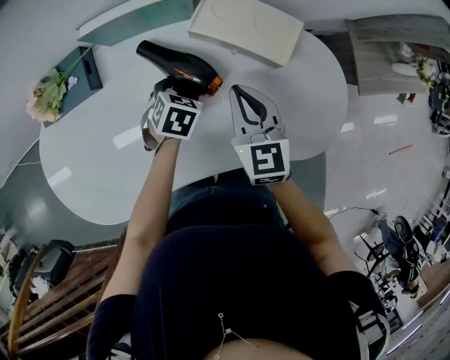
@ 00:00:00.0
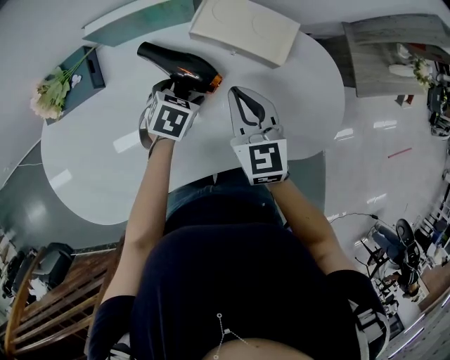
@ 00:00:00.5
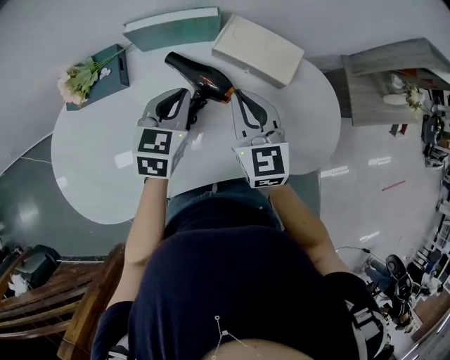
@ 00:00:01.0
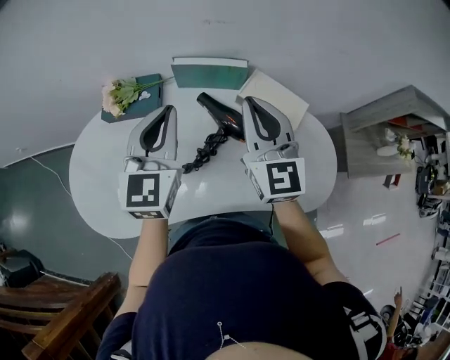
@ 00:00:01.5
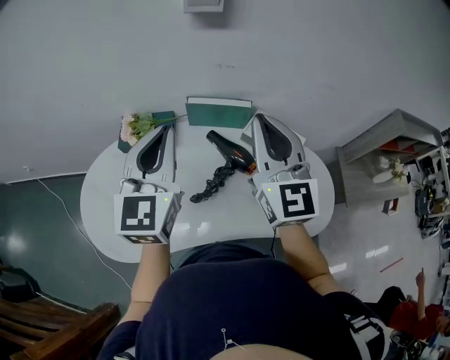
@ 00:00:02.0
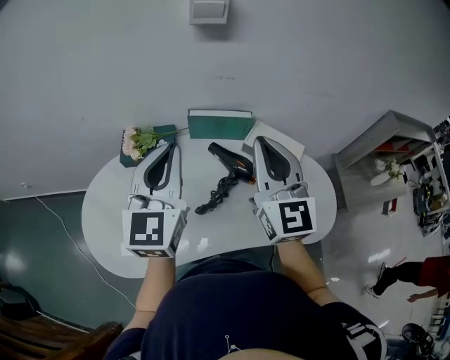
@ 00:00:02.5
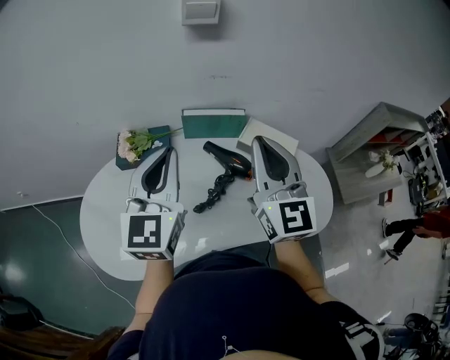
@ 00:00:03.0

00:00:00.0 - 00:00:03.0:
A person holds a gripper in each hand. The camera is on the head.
00:00:00.0 - 00:00:01.5: The right gripper heads upward, covering about 25 cm, and rotates roughly 30 degrees, while the left gripper heads upward, covering roughly 35 cm, angles its fingers upward, by roughly 60 degrees, and closes up.
00:00:01.5 - 00:00:03.0: The right gripper moves upward and backward, about 10 cm, while the left gripper shifts about 10 cm upward, to the left and backward.

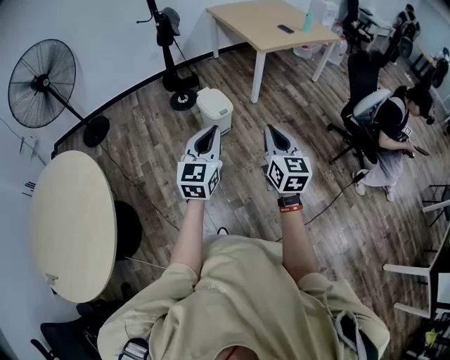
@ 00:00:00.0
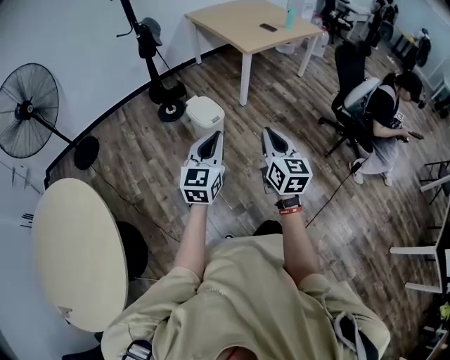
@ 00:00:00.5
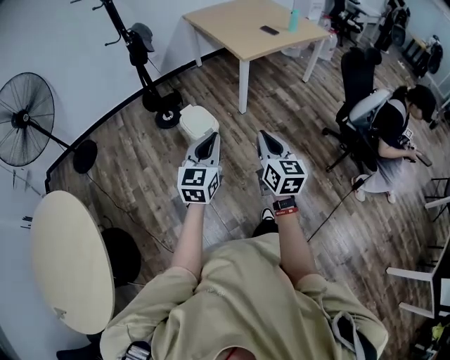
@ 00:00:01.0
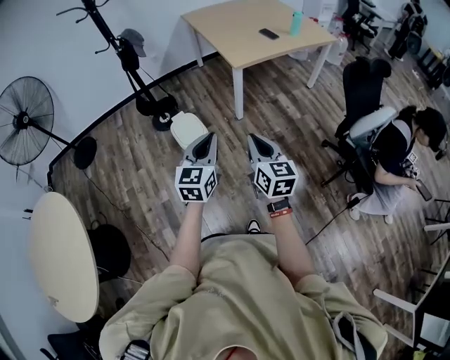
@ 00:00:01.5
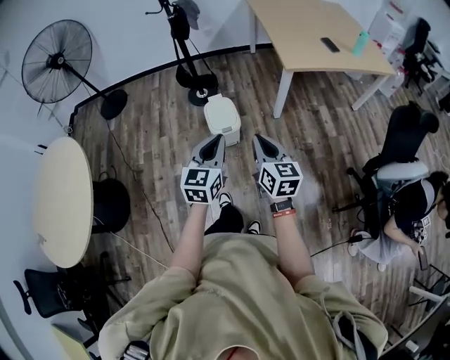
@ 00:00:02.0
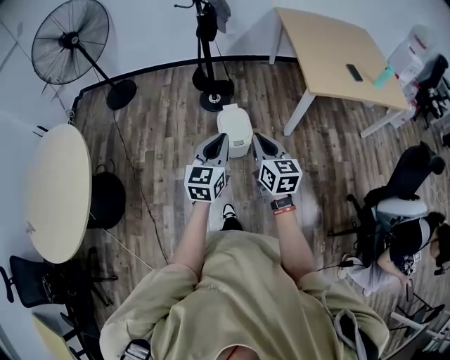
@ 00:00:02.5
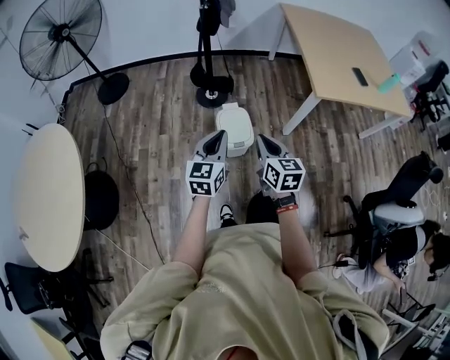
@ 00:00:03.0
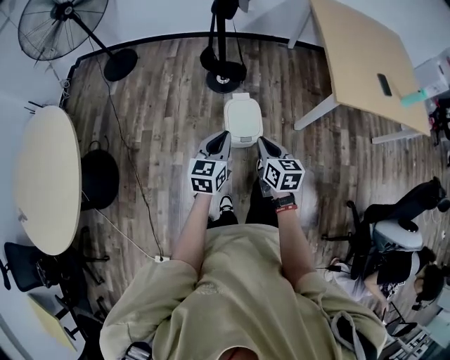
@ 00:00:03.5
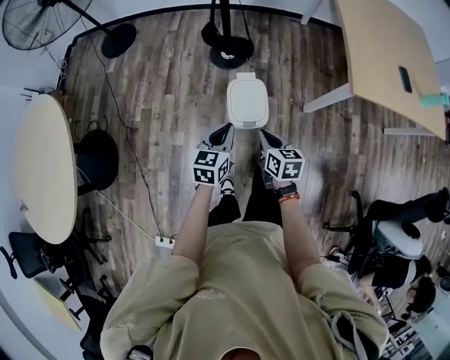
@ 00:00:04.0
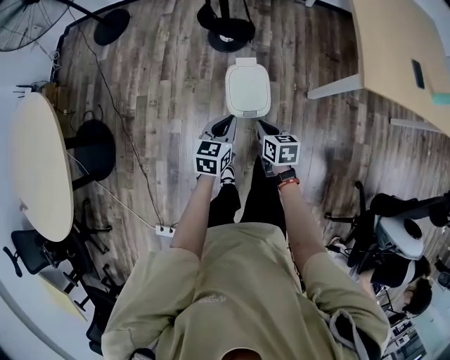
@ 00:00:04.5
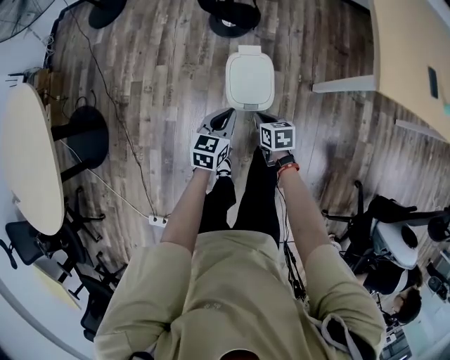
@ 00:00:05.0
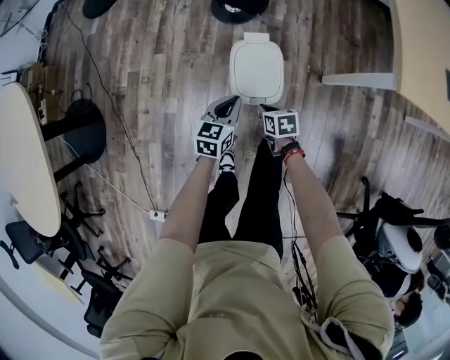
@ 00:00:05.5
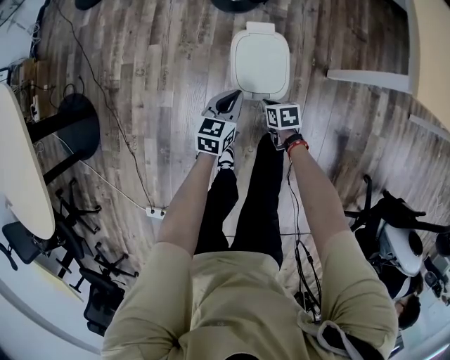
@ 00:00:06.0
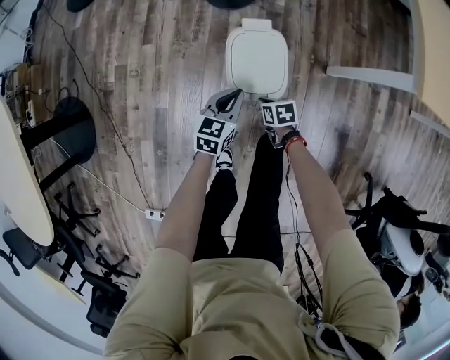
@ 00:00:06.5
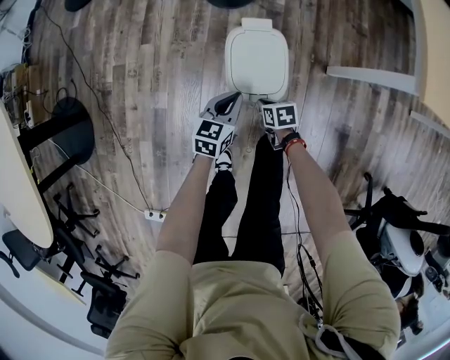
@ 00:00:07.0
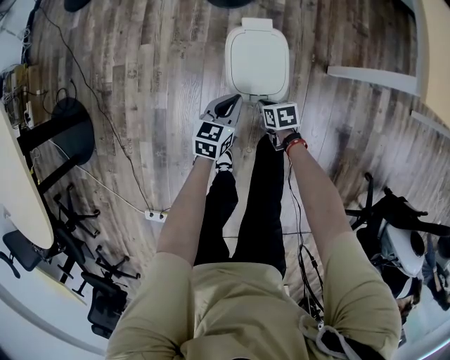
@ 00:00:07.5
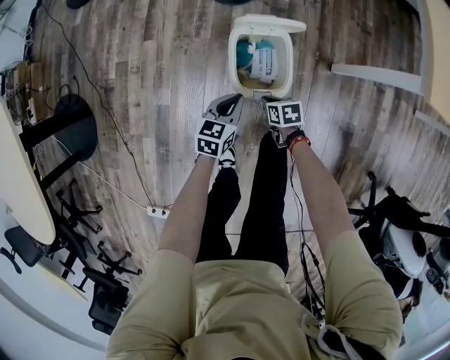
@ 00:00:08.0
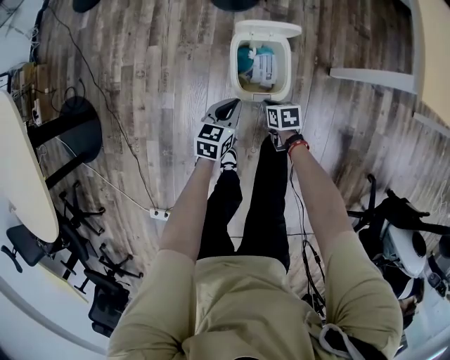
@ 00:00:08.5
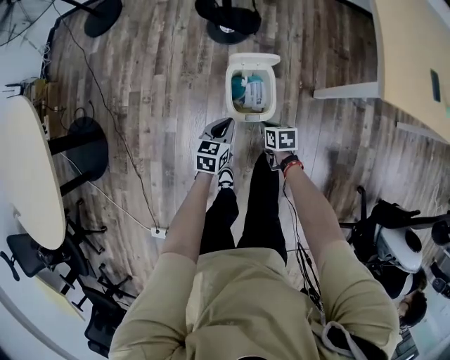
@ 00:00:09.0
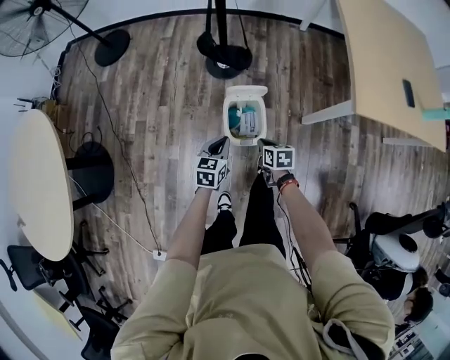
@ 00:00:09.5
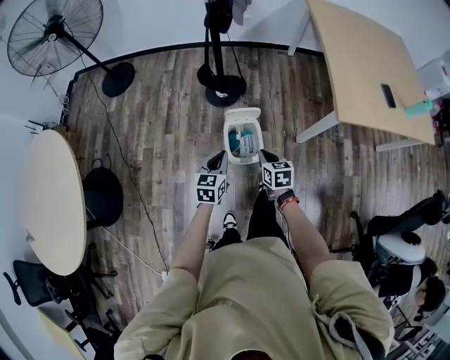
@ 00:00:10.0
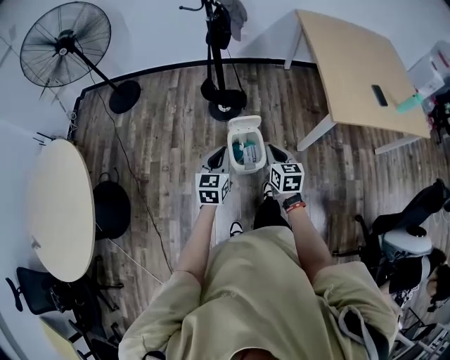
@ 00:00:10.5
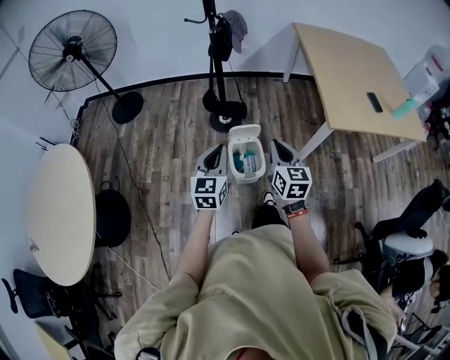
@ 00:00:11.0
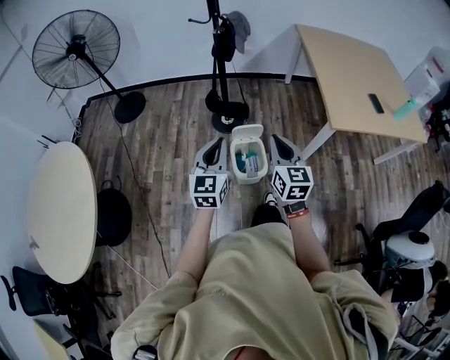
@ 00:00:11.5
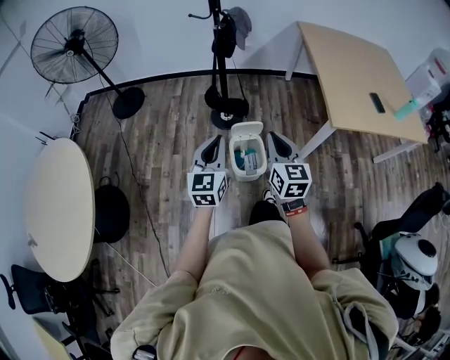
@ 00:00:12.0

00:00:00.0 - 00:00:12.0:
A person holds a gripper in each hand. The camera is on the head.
00:00:00.0 - 00:00:02.0: The right gripper ends up roughly 40 cm from where it was, and swivels about 30 degrees. The left gripper ends up about 40 cm from where it was, and rotates some 20 degrees.
00:00:02.0 - 00:00:04.0: The grippers both shift forward and downward by approximately 40 cm. The right gripper rotates approximately 30 degrees; the left gripper changes its angle by approximately 20 degrees.
00:00:04.0 - 00:00:06.0: The grippers both shift downward by approximately 35 cm. The right gripper turns by about 30 degrees.
00:00:06.0 - 00:00:08.0: The grippers both shift downward by about 5 cm.
00:00:08.0 - 00:00:10.0: Both grippers move upward, about 40 cm. The right gripper rotates about 30 degrees.
00:00:10.0 - 00:00:12.0: Both grippers travel together upward, approximately 25 cm. The right gripper tips its fingers upward by some 30 degrees. The left gripper swivels approximately 20 degrees.

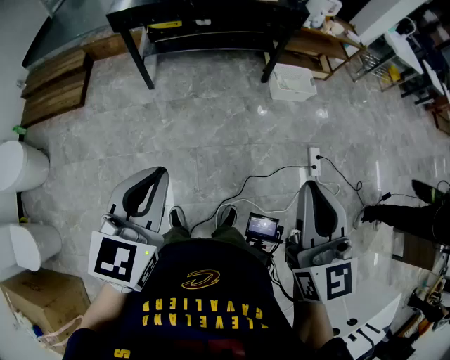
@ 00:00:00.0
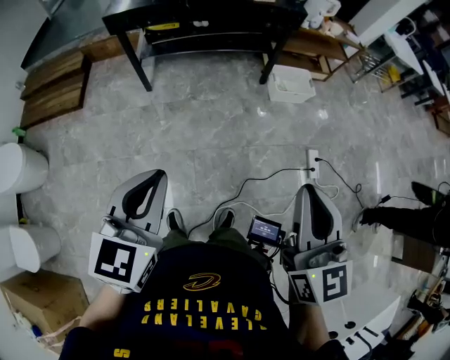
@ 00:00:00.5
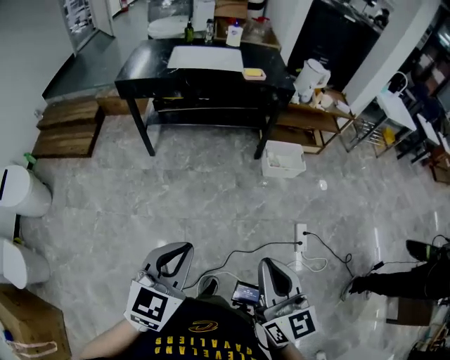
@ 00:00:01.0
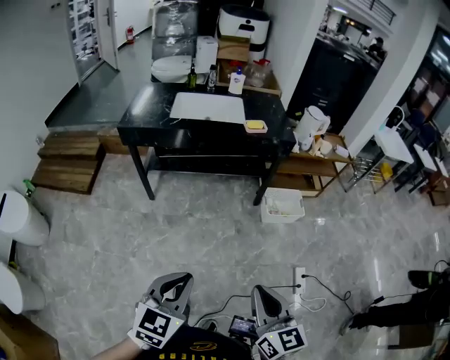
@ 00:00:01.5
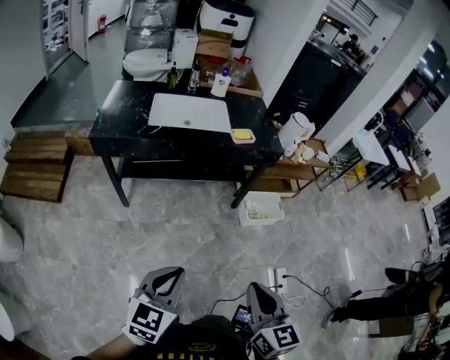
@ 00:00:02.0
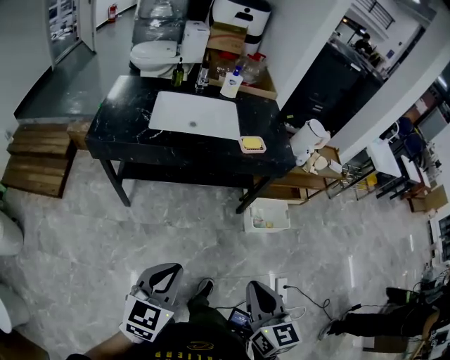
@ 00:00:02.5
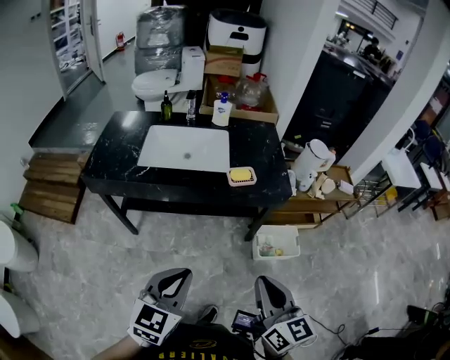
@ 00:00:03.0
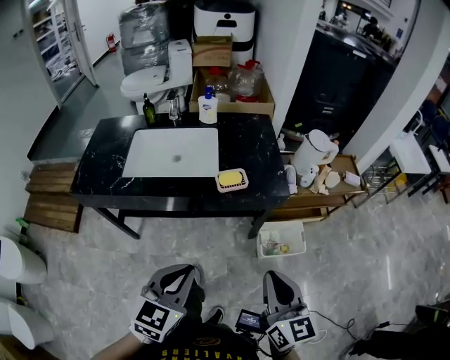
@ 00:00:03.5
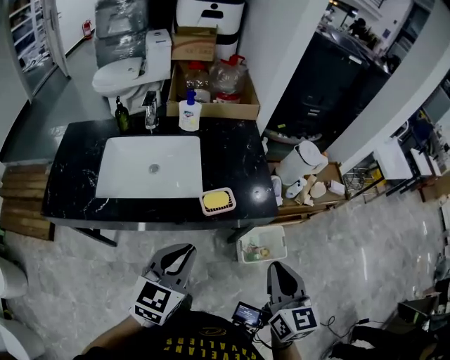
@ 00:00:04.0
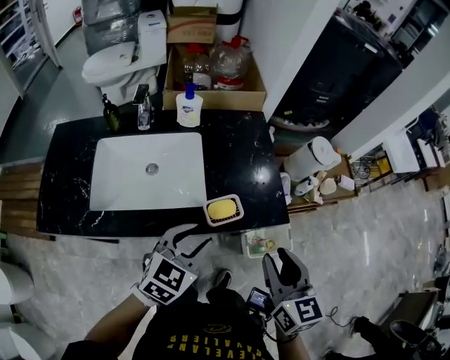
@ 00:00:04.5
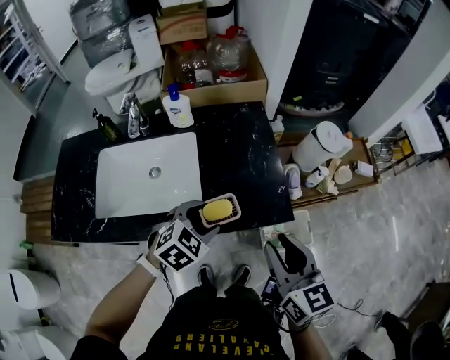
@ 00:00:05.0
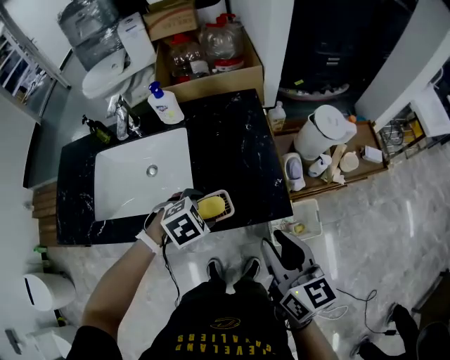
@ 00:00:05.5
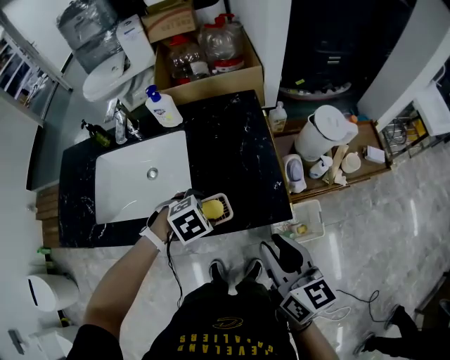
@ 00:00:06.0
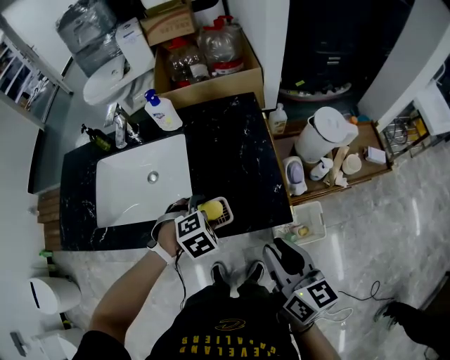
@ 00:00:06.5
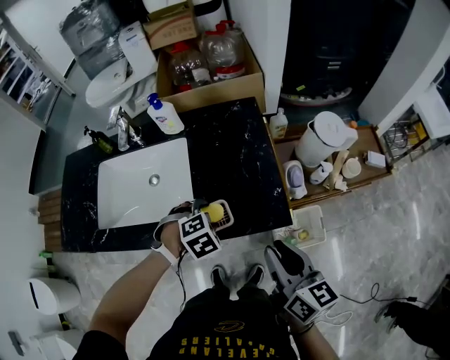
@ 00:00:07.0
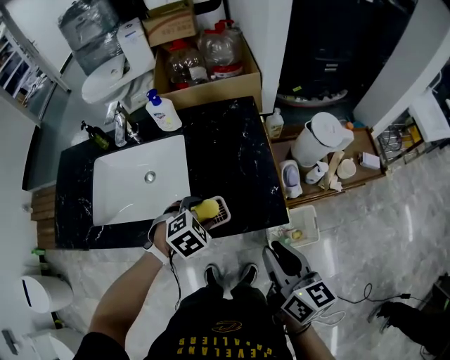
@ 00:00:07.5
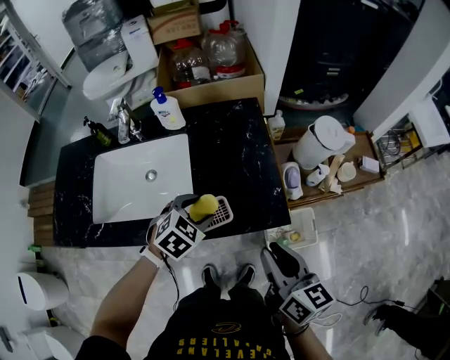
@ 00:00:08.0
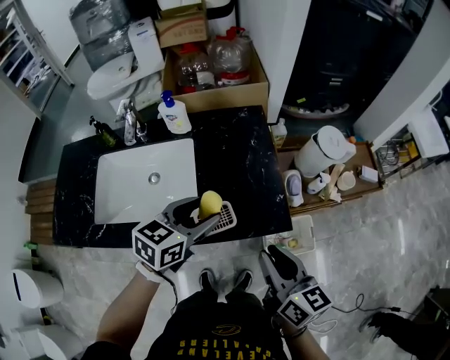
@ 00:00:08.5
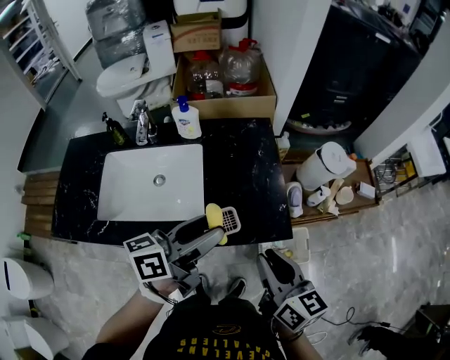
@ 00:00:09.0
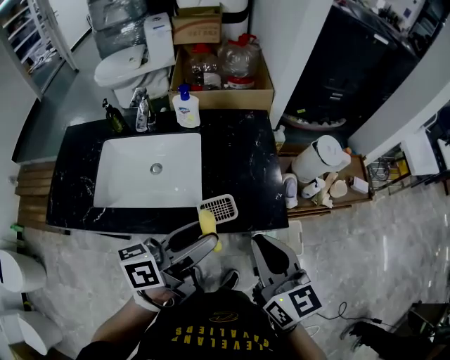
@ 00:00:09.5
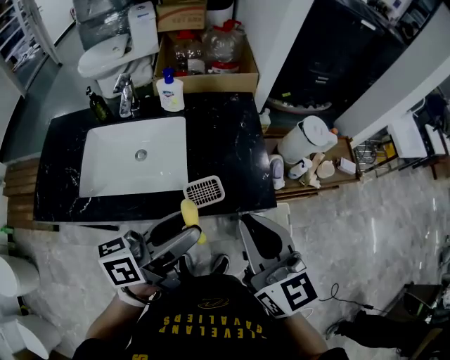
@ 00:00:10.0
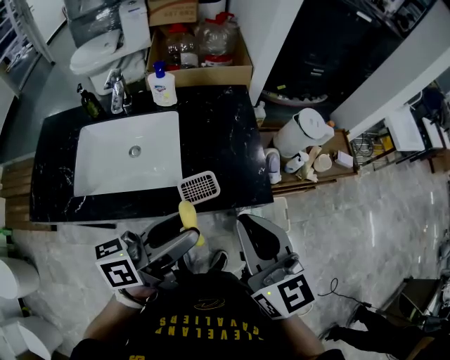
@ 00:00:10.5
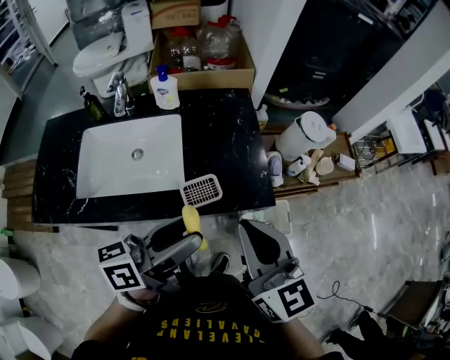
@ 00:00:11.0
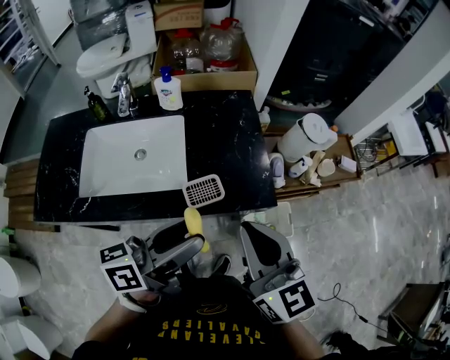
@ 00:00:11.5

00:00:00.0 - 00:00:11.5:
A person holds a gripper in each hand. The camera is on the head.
00:00:00.0 - 00:00:02.0: The grippers both shift forward by approximately 25 cm.
00:00:02.0 - 00:00:04.0: Both grippers are carried forward, about 50 cm.
00:00:04.0 - 00:00:06.0: The right gripper moves about 15 cm, turns by about 20 degrees, and opens. Meanwhile the left gripper changes place by some 30 cm, angles its fingers downward, by about 60 degrees, and opens up.
00:00:06.0 - 00:00:07.5: The grippers make only small movements.
00:00:07.5 - 00:00:09.5: The left gripper heads upward and backward, covering some 25 cm, and angles its fingers upward, by approximately 70 degrees, while the right gripper moves upward and to the left, some 10 cm, and rotates roughly 20 degrees.
00:00:09.5 - 00:00:11.5: The grippers move only a little.
